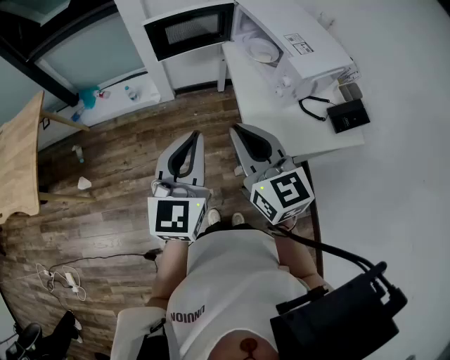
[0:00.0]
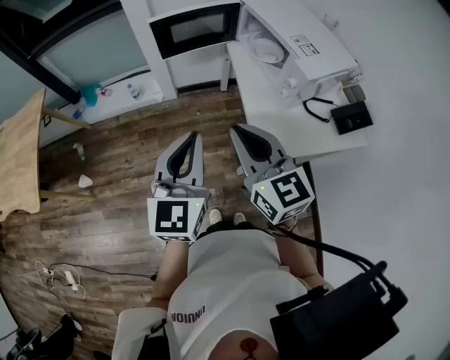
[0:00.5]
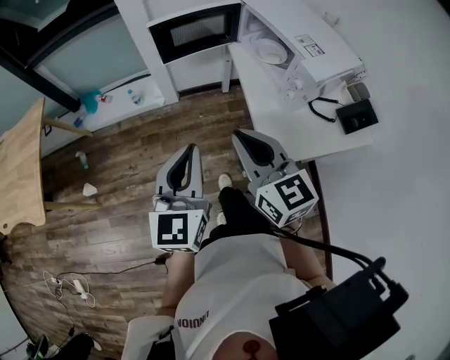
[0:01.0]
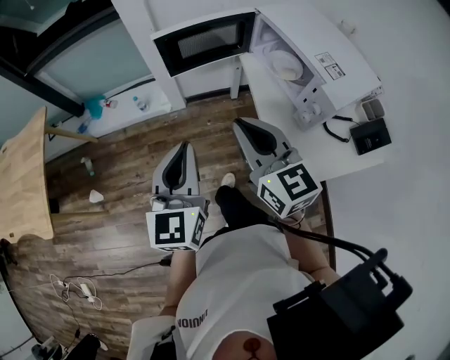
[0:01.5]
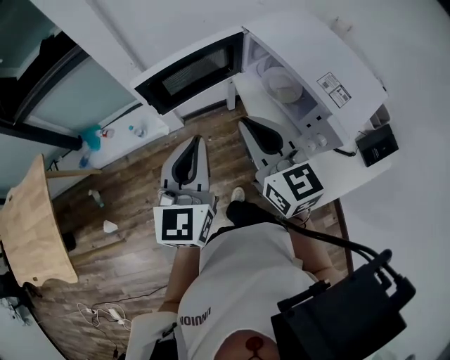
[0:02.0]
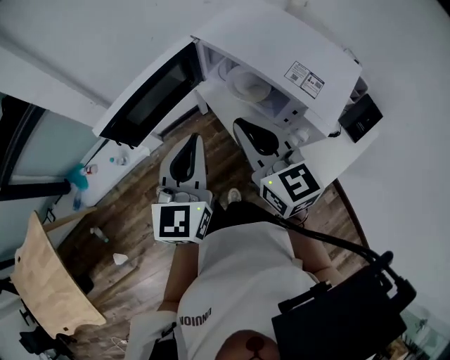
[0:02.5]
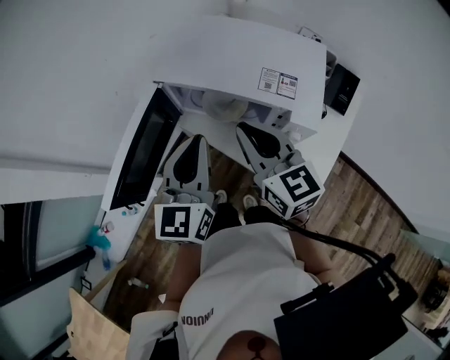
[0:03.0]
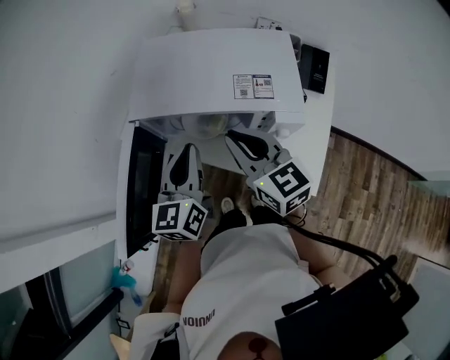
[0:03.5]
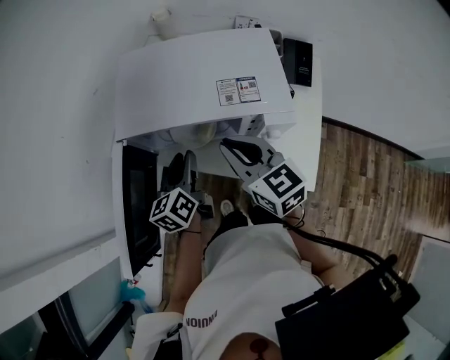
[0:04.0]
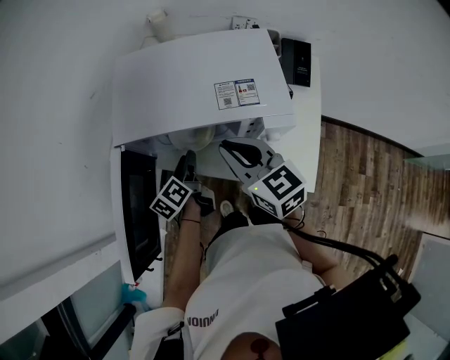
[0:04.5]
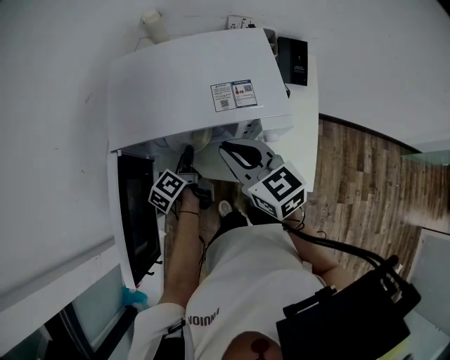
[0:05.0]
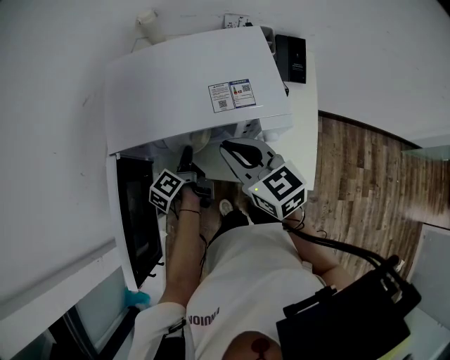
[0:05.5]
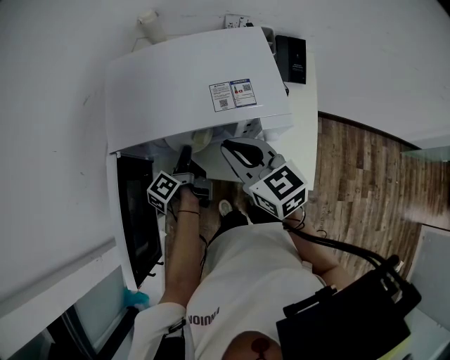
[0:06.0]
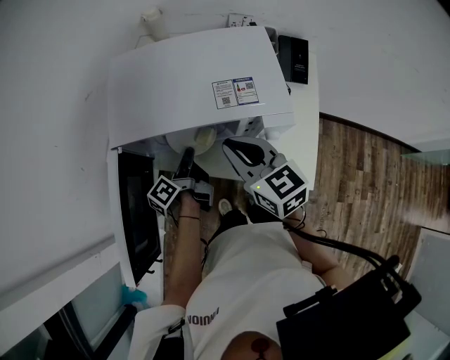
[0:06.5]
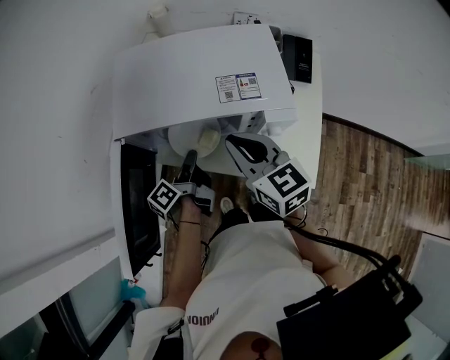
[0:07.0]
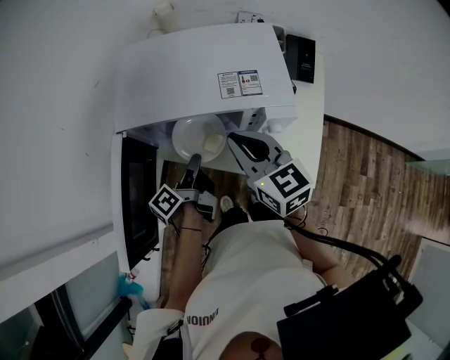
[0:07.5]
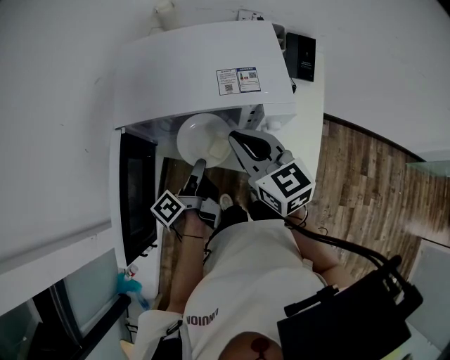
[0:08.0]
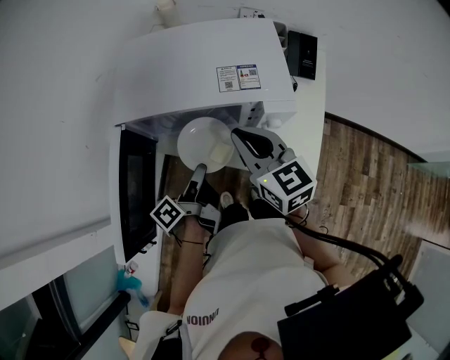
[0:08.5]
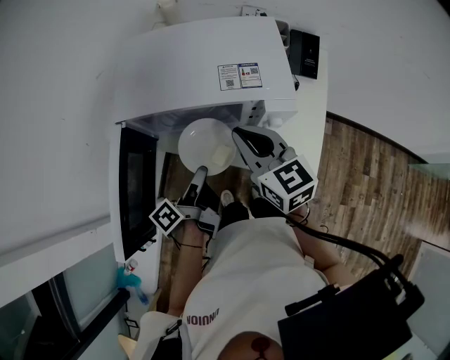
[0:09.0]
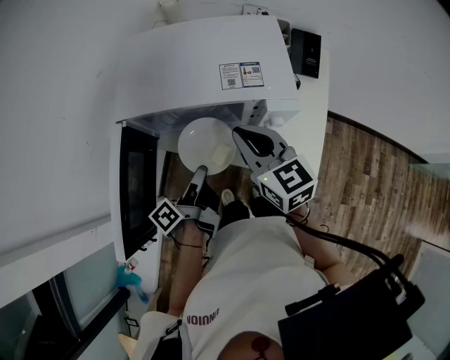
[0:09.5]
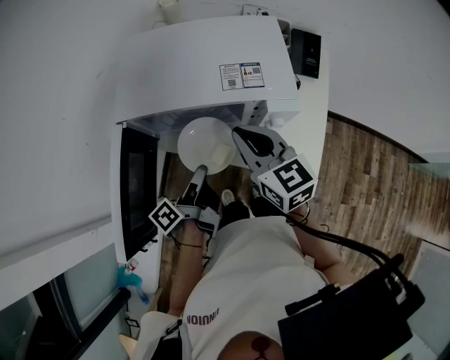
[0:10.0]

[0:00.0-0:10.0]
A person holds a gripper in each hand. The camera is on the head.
0:00.0 to 0:02.0: The grippers both shift forward by roughly 25 cm.
0:02.0 to 0:04.0: The left gripper ends up approximately 30 cm from where it was, changes its angle by roughly 60 degrees, and opens. Meanwhile the right gripper moves approximately 15 cm, and rotates roughly 50 degrees.
0:04.0 to 0:06.0: The left gripper moves downward, approximately 10 cm, rotates around the line of its fingers by some 40 degrees, counterclockwise from behind, and closes its fingers.
0:06.0 to 0:08.0: The left gripper shifts about 10 cm backward.
0:08.0 to 0:10.0: The grippers make only small movements.

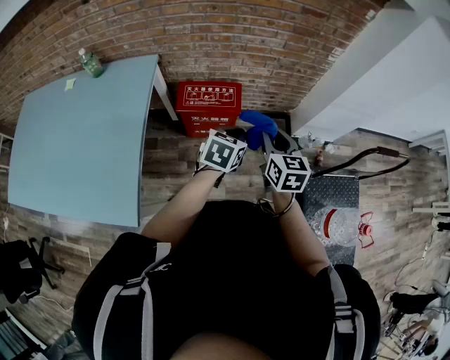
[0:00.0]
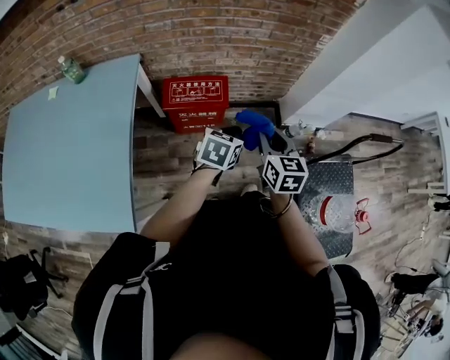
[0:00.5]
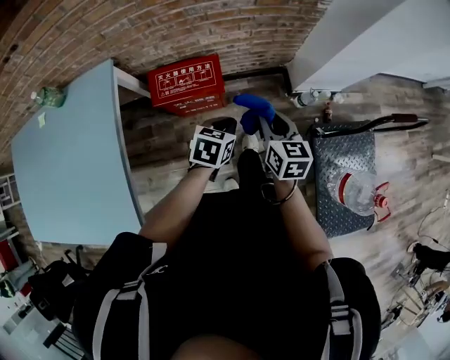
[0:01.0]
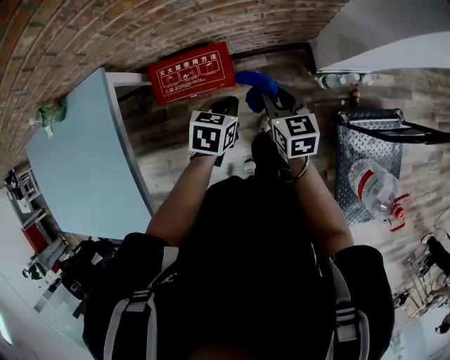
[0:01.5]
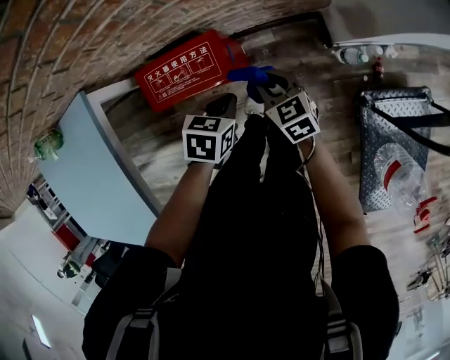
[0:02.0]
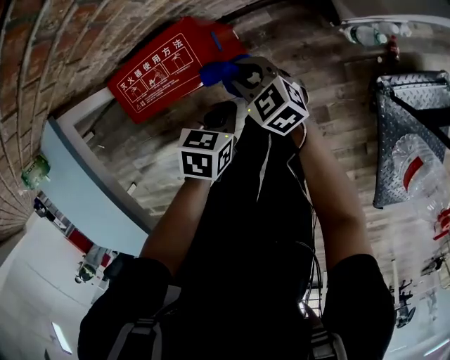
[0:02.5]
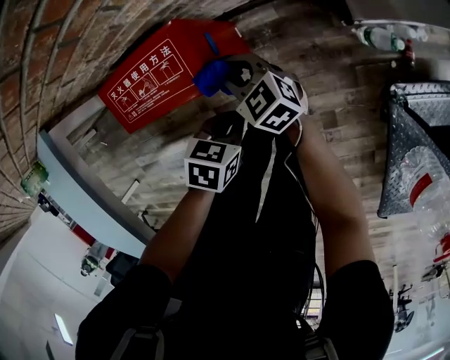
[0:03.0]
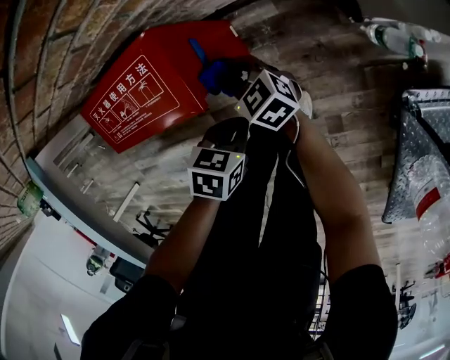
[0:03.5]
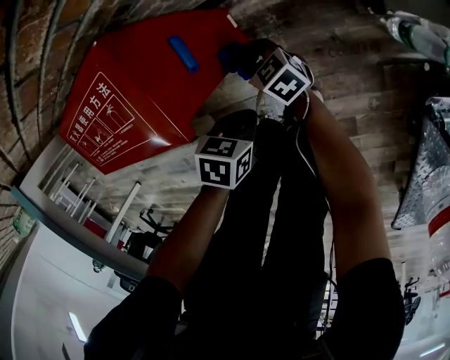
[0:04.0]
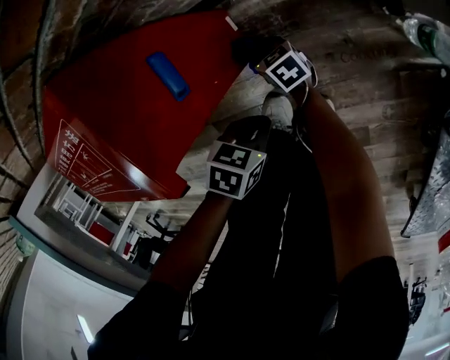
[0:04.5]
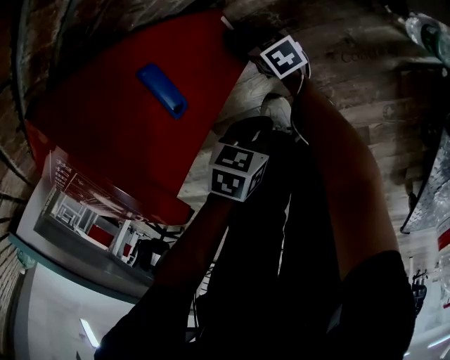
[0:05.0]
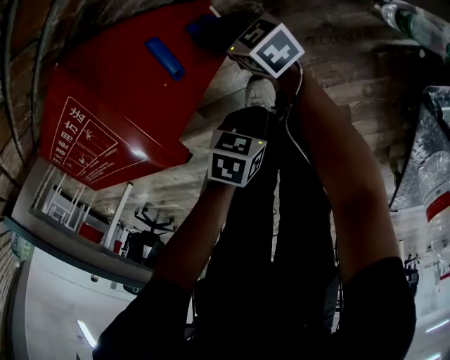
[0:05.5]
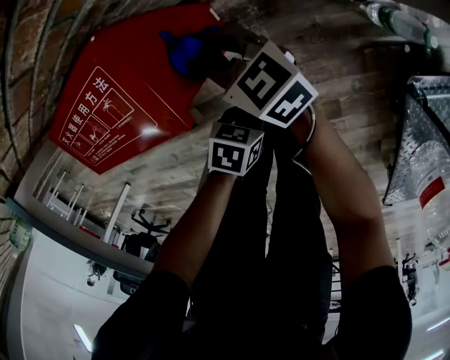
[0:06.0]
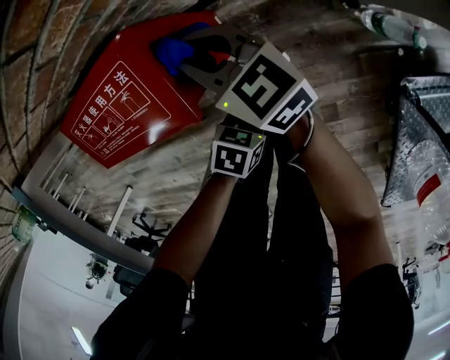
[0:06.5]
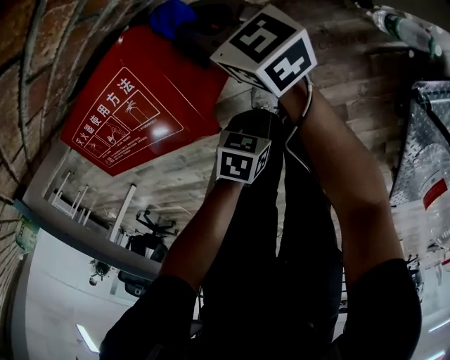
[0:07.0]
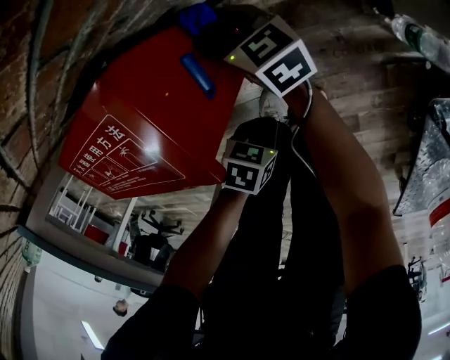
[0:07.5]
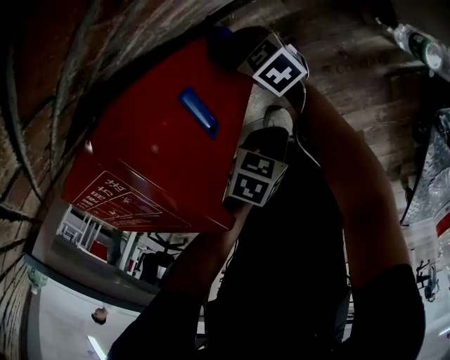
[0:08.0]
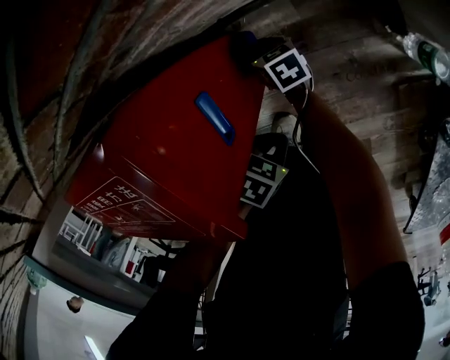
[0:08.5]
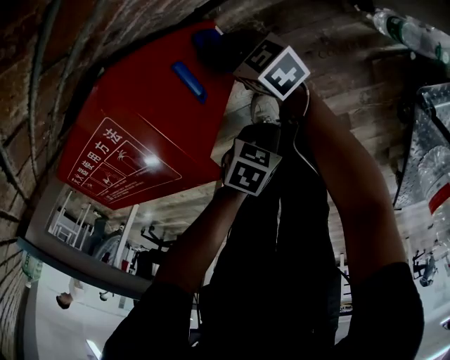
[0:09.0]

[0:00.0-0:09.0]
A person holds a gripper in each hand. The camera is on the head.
0:00.0 to 0:02.0: The left gripper goes roughly 35 cm forward and downward, and swivels about 30 degrees. Meanwhile the right gripper heads downward and forward, covering roughly 40 cm, and swivels about 30 degrees.
0:02.0 to 0:04.5: Both grippers move downward, roughly 50 cm. The right gripper changes its angle by roughly 20 degrees. The left gripper turns by some 20 degrees.
0:04.5 to 0:07.0: The right gripper is displaced upward by approximately 35 cm, and changes its angle by roughly 30 degrees. The left gripper moves upward, some 10 cm.
0:07.0 to 0:09.0: The right gripper travels downward by some 15 cm.

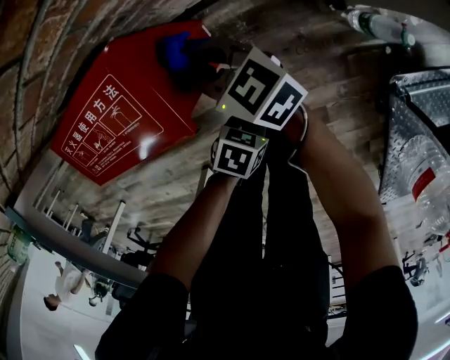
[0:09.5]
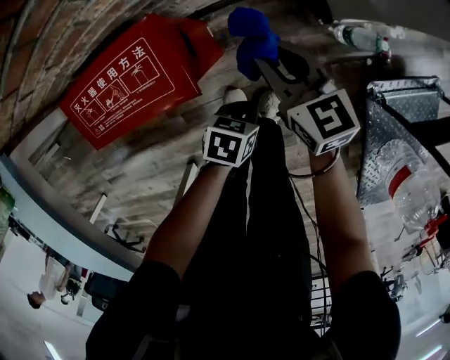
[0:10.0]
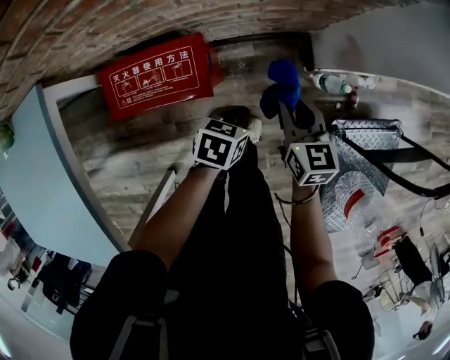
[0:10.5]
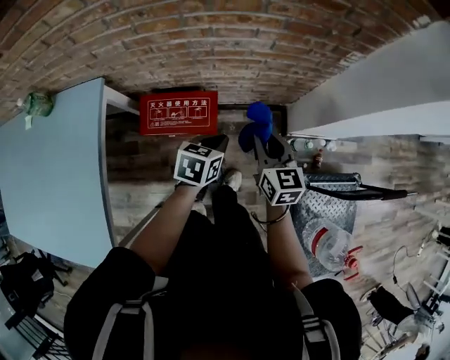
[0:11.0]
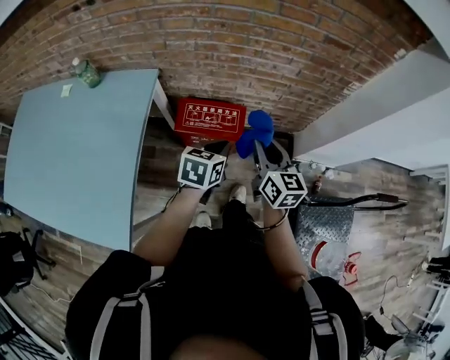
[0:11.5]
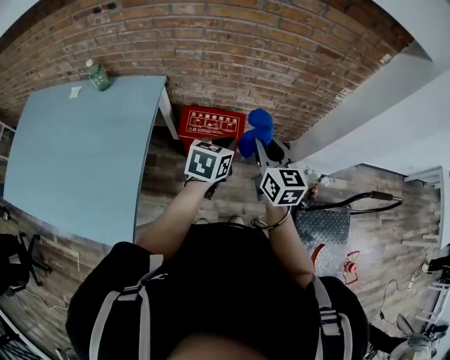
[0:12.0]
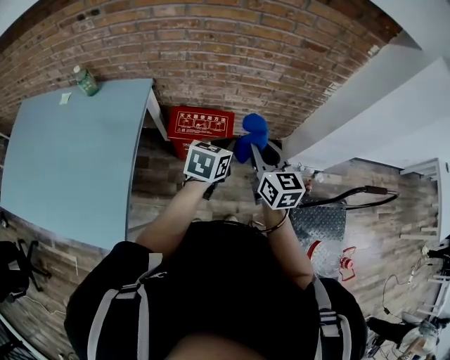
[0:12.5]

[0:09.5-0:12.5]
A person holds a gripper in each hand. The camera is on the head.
0:09.5 to 0:11.0: The grippers both shift upward by some 50 cm. The right gripper swivels about 30 degrees. Meanwhile the left gripper swivels roughly 40 degrees.
0:11.0 to 0:12.5: The left gripper goes approximately 20 cm upward and backward. Meanwhile the right gripper moves backward, upward and to the left, some 25 cm.

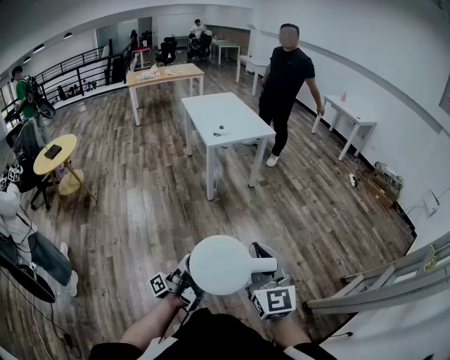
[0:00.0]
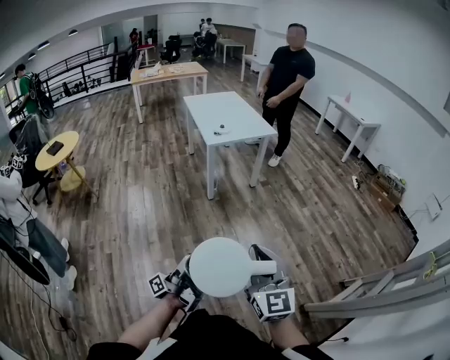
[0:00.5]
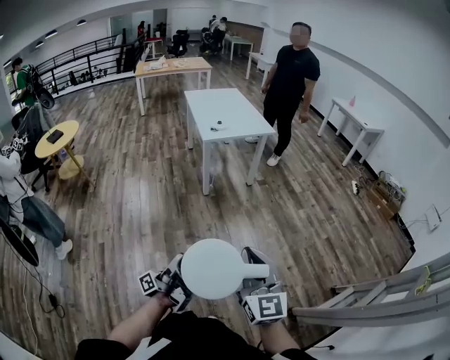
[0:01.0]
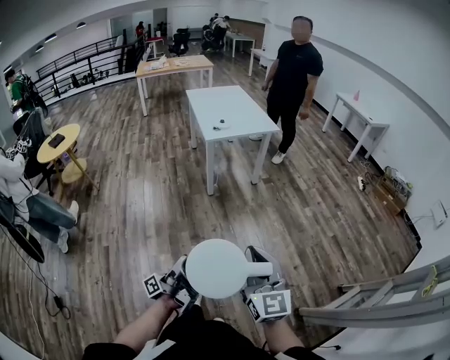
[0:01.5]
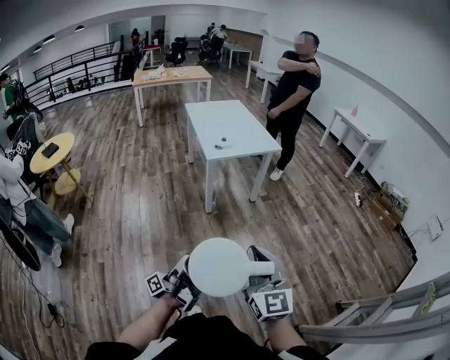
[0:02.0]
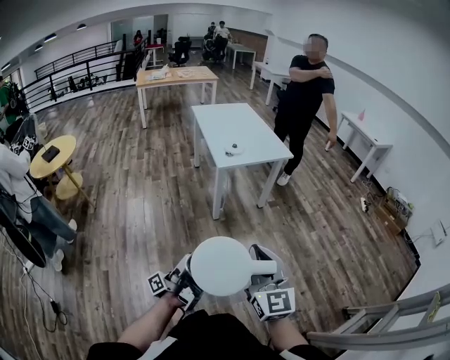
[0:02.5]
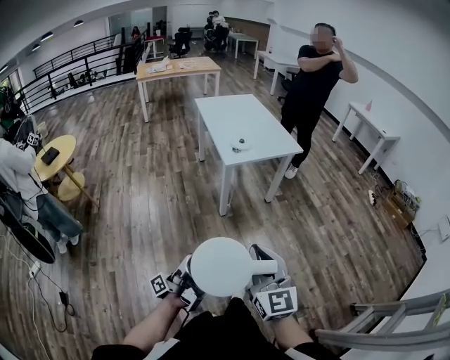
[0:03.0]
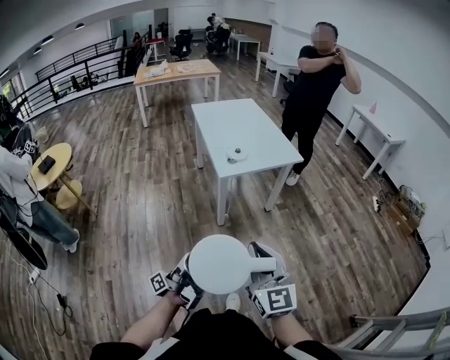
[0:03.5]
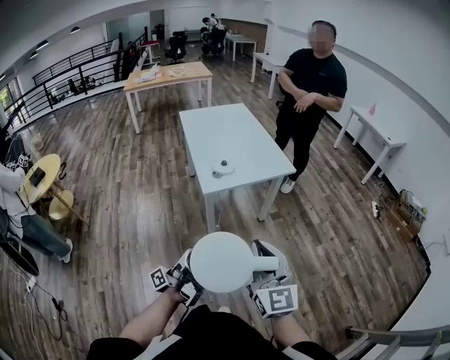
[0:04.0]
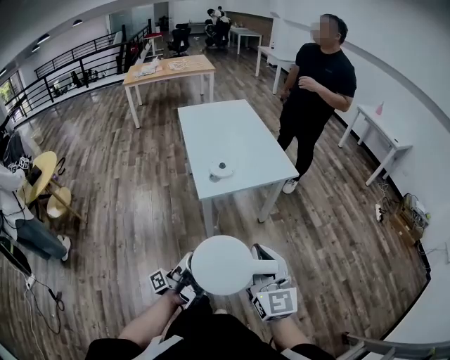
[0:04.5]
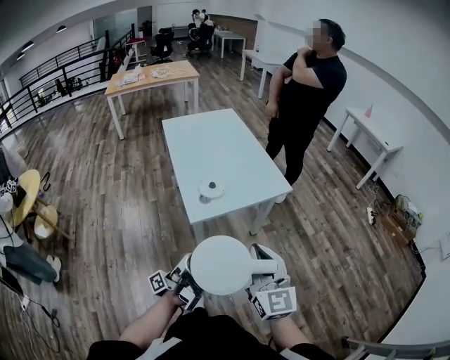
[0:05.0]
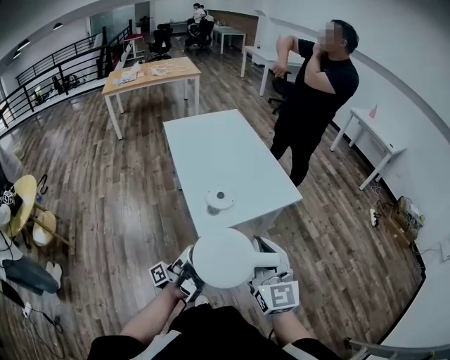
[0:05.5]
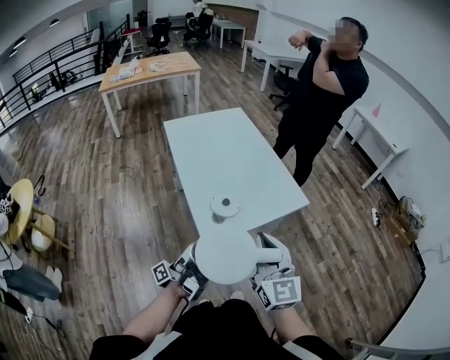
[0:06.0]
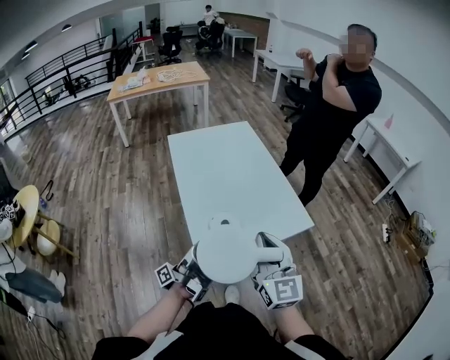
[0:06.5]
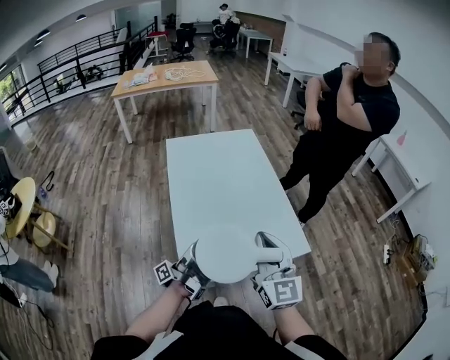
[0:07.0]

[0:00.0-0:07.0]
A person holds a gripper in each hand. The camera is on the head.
0:00.0 to 0:02.0: The right gripper ends up approximately 15 cm from where it was.
0:02.0 to 0:03.5: The right gripper changes place by approximately 20 cm.
0:03.5 to 0:05.0: The right gripper moves about 30 cm.
0:05.0 to 0:07.0: The right gripper shifts by approximately 35 cm.
